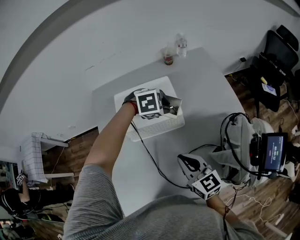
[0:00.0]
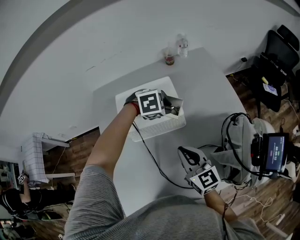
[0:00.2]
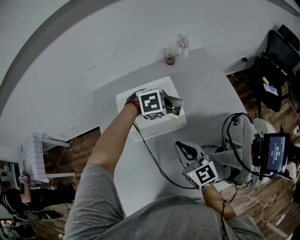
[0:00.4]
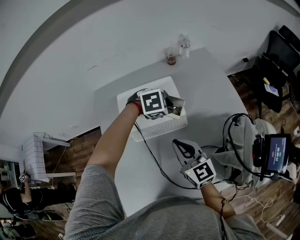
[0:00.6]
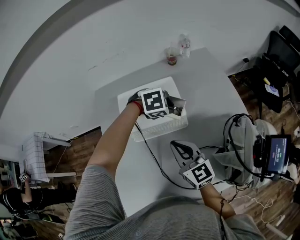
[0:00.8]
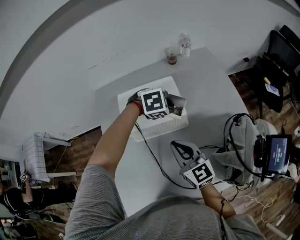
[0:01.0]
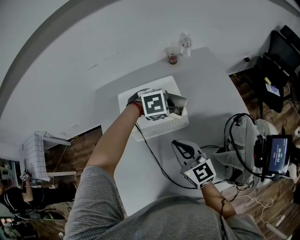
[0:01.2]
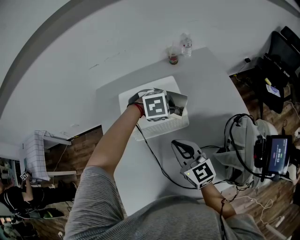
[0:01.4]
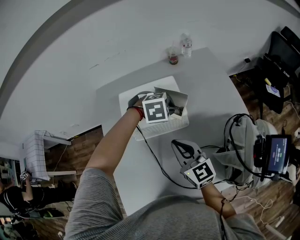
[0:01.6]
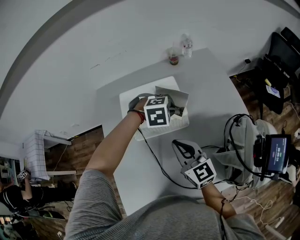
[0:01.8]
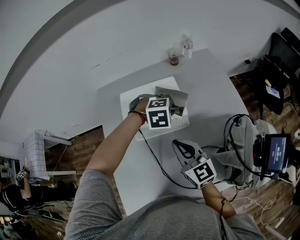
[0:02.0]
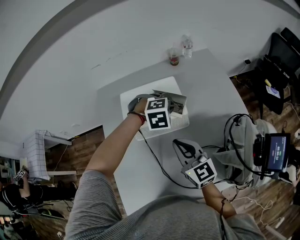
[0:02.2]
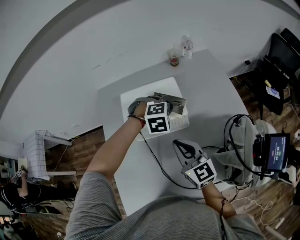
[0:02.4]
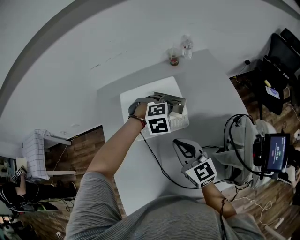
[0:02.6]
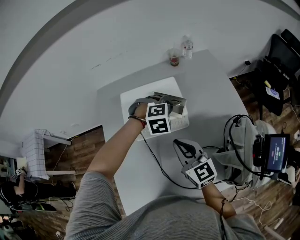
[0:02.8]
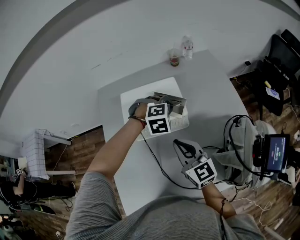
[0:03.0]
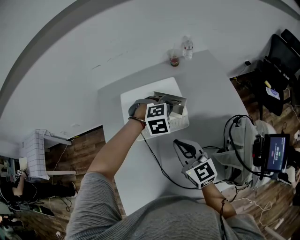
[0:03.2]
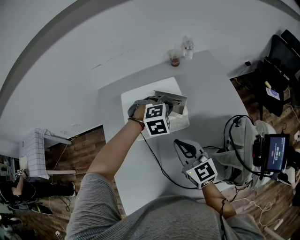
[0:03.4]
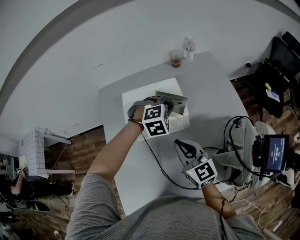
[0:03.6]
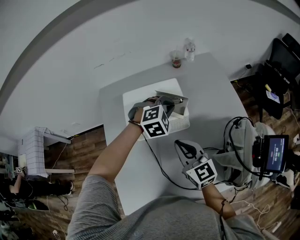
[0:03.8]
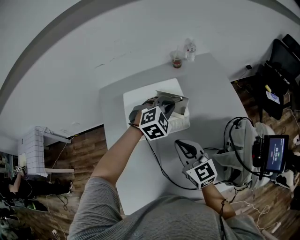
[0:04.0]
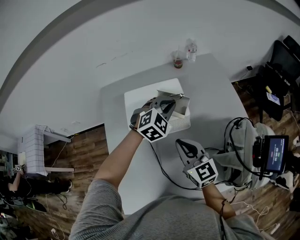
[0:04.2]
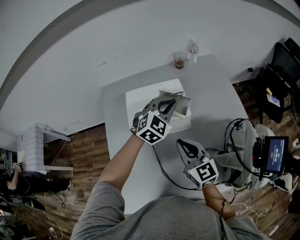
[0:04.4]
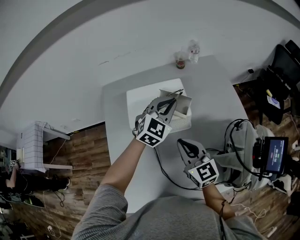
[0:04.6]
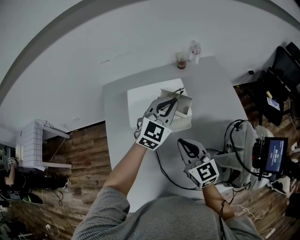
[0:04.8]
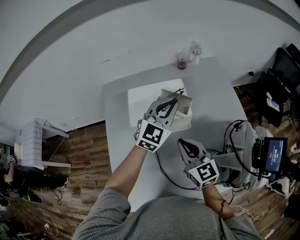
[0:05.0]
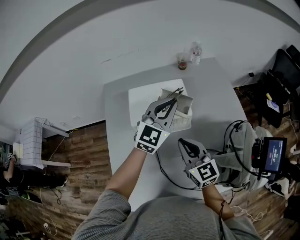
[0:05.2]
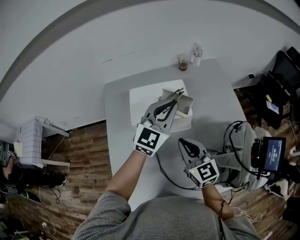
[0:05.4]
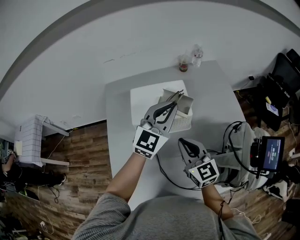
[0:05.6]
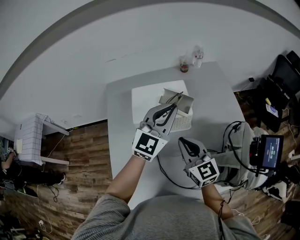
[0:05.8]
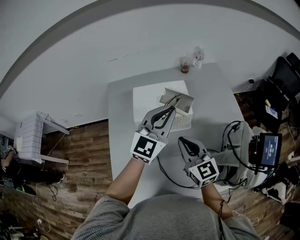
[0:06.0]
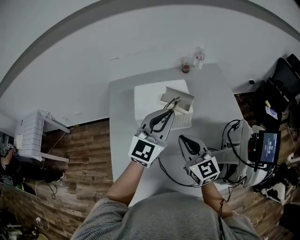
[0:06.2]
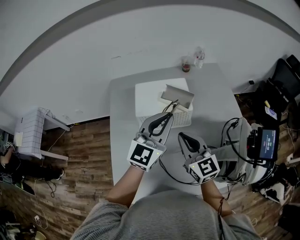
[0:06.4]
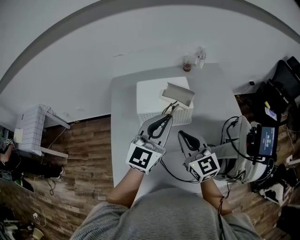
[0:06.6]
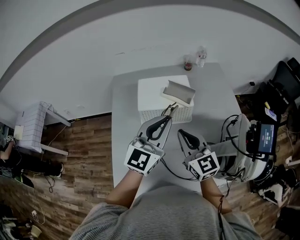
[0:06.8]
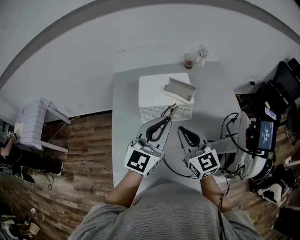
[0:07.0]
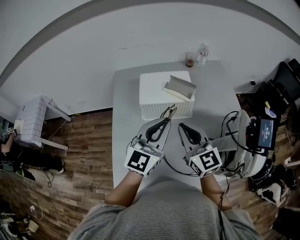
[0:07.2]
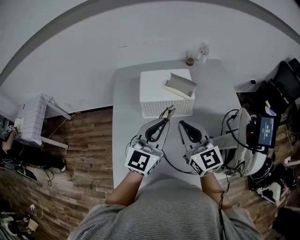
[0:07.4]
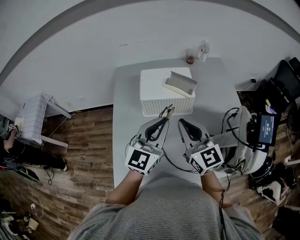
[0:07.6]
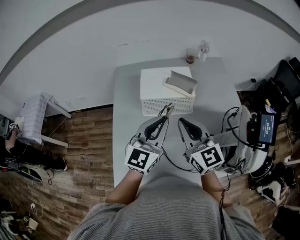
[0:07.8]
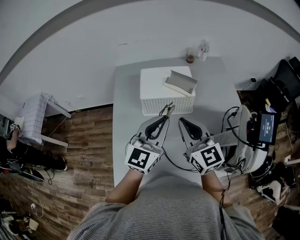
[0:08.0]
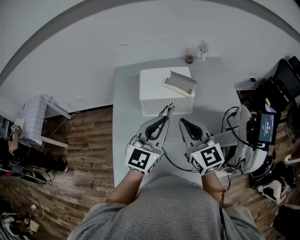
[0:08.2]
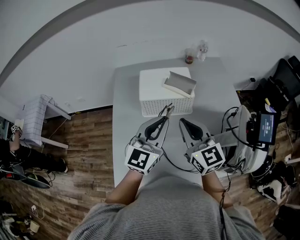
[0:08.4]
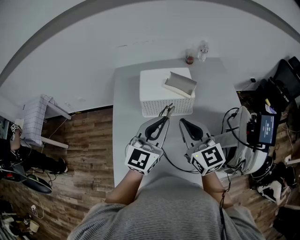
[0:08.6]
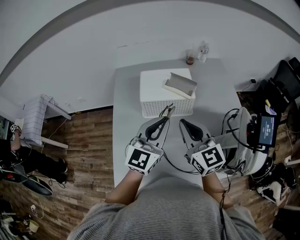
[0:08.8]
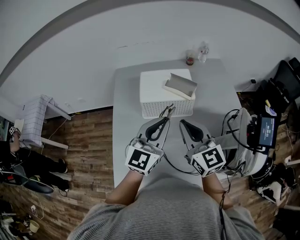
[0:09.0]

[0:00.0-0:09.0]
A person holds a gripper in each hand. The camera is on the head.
0:00.0 to 0:01.6: The right gripper goes some 5 cm to the left.
0:01.6 to 0:03.0: The grippers make only small movements.
0:03.0 to 0:04.4: The left gripper moves upward, roughly 5 cm, and tips its fingers upward by some 30 degrees.
0:04.4 to 0:06.0: The left gripper goes roughly 15 cm upward and backward, and changes its angle by about 30 degrees.
0:06.0 to 0:07.6: The right gripper is displaced upward and backward by roughly 10 cm. Meanwhile the left gripper shifts some 15 cm backward.
0:07.6 to 0:09.0: Both grippers stay about where they are.

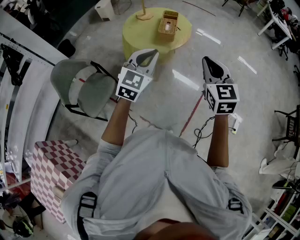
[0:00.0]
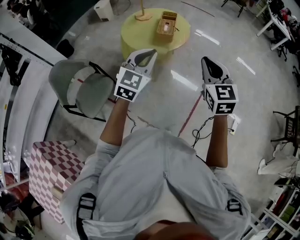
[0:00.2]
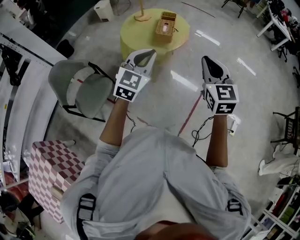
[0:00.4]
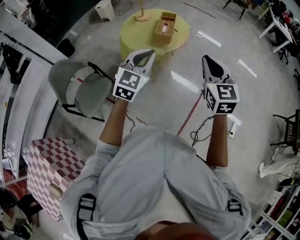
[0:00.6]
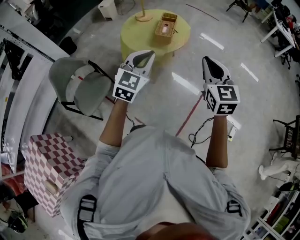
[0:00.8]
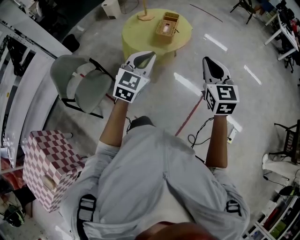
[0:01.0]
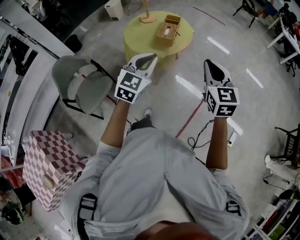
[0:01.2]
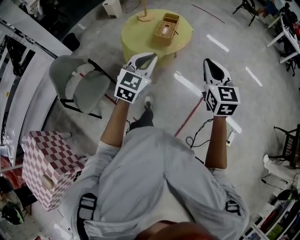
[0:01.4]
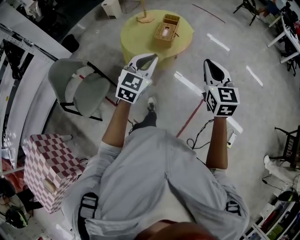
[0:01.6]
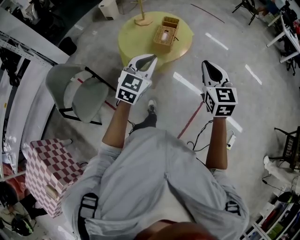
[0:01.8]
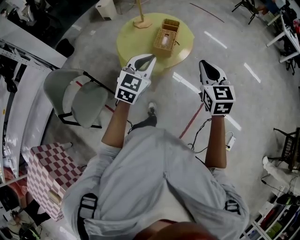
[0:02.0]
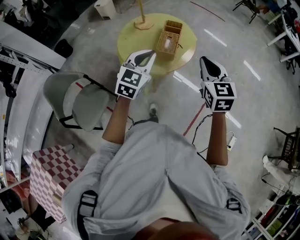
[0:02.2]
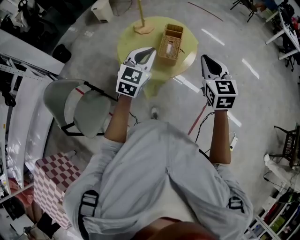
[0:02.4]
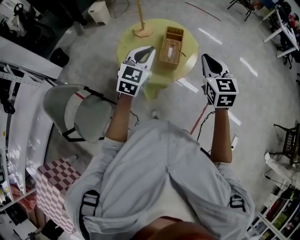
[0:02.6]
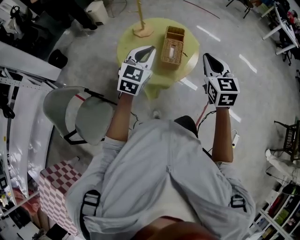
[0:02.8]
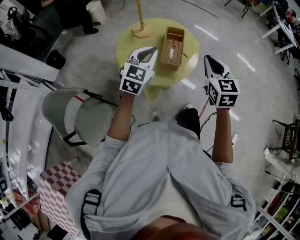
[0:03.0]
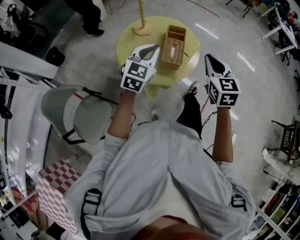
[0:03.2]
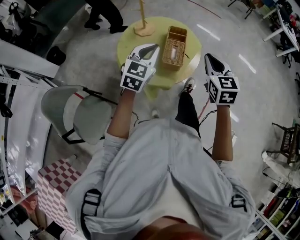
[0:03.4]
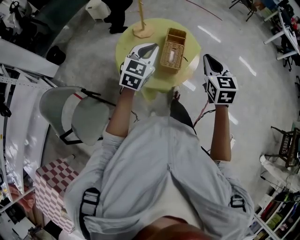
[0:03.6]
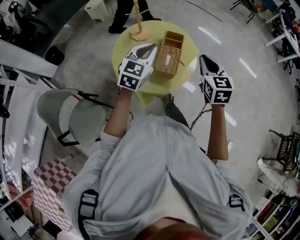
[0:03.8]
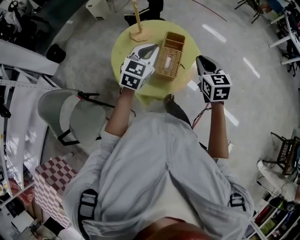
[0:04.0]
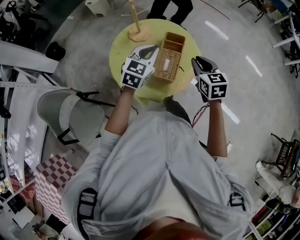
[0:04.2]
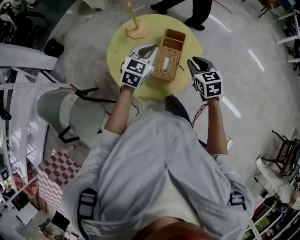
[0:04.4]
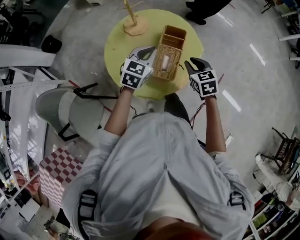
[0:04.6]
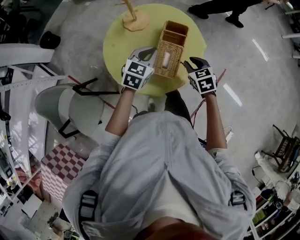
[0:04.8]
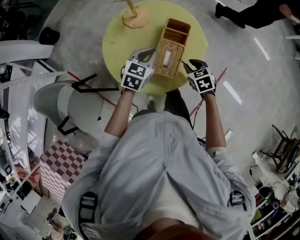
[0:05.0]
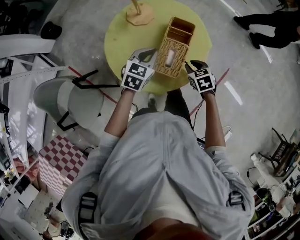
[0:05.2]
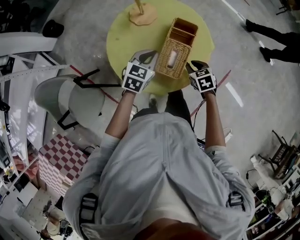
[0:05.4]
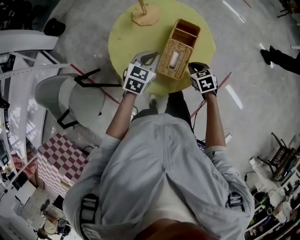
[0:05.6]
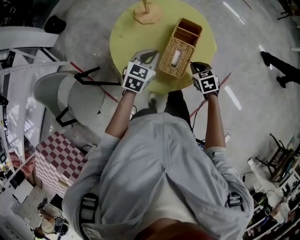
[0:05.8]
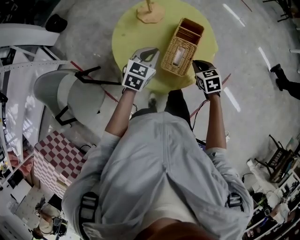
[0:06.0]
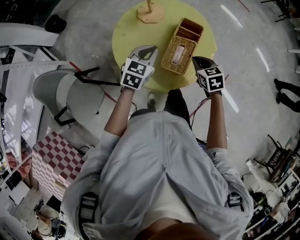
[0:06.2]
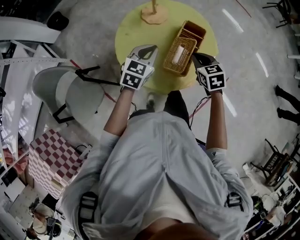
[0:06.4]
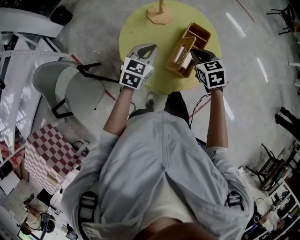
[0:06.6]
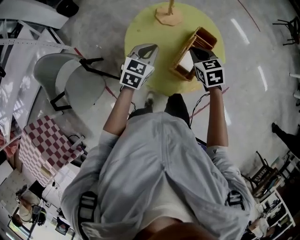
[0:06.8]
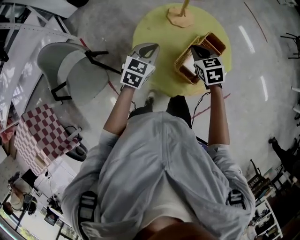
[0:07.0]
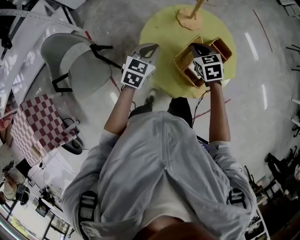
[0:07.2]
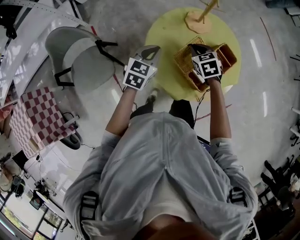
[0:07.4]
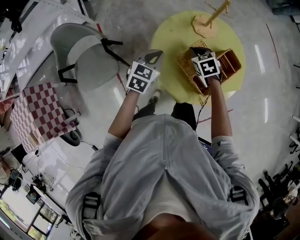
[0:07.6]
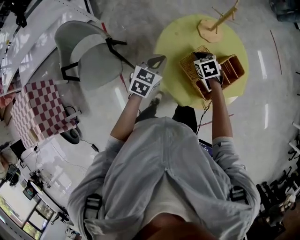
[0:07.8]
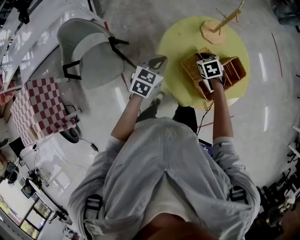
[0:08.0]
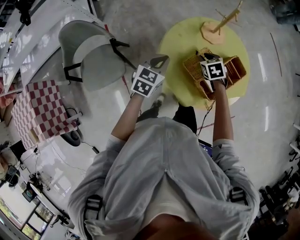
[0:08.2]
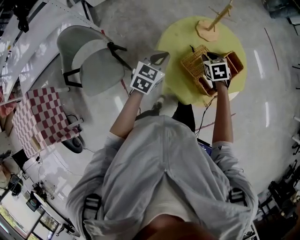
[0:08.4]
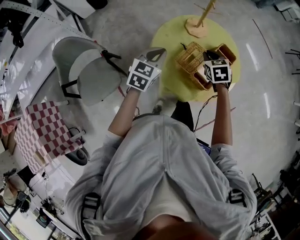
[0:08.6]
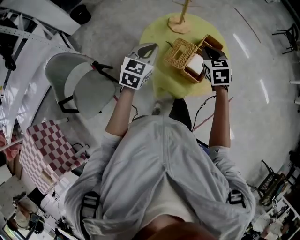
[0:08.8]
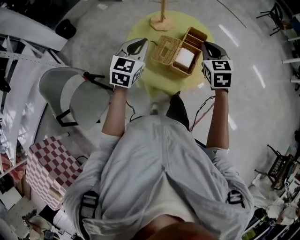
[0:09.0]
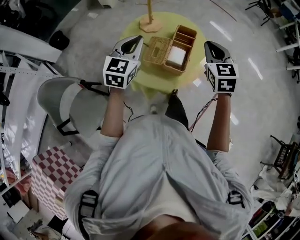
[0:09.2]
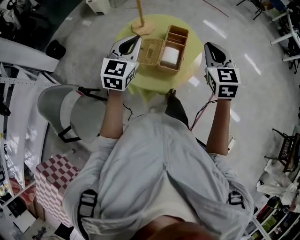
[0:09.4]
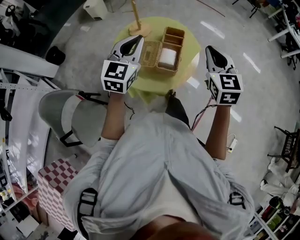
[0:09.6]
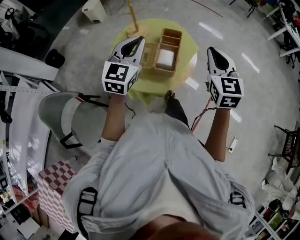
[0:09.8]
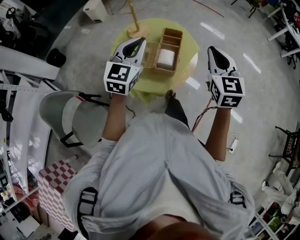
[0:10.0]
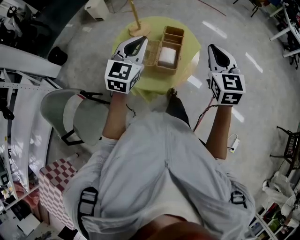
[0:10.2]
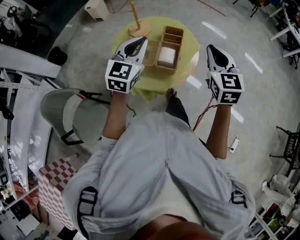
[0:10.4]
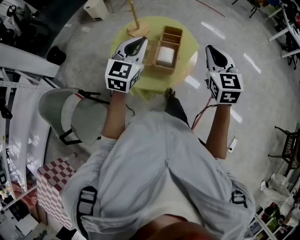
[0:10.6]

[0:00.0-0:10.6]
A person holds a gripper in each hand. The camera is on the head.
0:00.0 to 0:01.6: Both grippers travel together forward and to the right, approximately 10 cm.
0:01.6 to 0:03.0: Both grippers travel together forward and to the left, approximately 30 cm.
0:03.0 to 0:04.6: The left gripper is displaced forward and downward by some 25 cm. The right gripper moves downward and forward, approximately 30 cm, and turns by about 30 degrees.
0:04.6 to 0:06.0: The right gripper shifts about 10 cm downward; the left gripper is displaced downward by about 5 cm.
0:06.0 to 0:07.6: The left gripper is displaced to the left by approximately 20 cm, and turns by some 30 degrees, while the right gripper goes approximately 25 cm to the left and forward, and rotates approximately 30 degrees.
0:07.6 to 0:09.0: The right gripper goes some 20 cm upward, and turns by about 40 degrees. The left gripper is displaced upward by about 10 cm, and swivels about 30 degrees.
0:09.0 to 0:10.6: The right gripper goes some 20 cm to the right, upward and backward; the left gripper shifts about 15 cm to the right and upward.

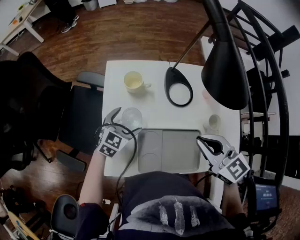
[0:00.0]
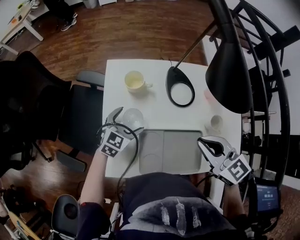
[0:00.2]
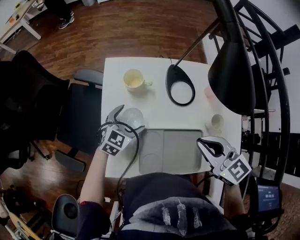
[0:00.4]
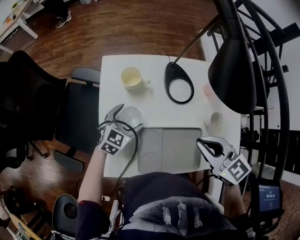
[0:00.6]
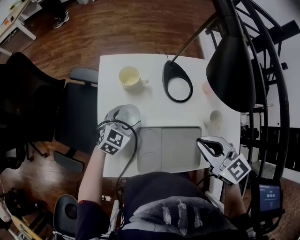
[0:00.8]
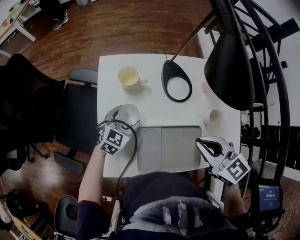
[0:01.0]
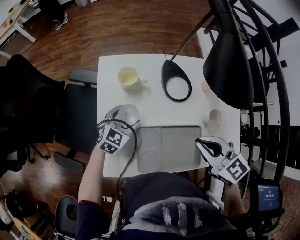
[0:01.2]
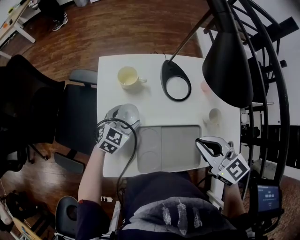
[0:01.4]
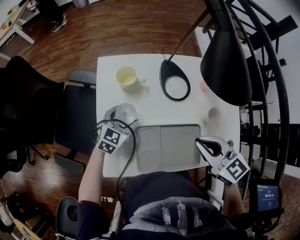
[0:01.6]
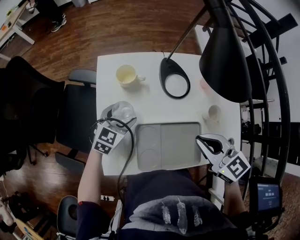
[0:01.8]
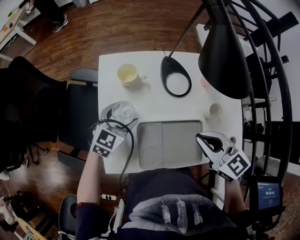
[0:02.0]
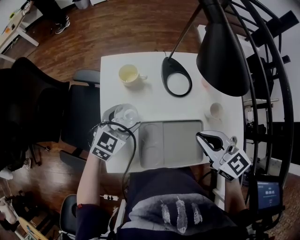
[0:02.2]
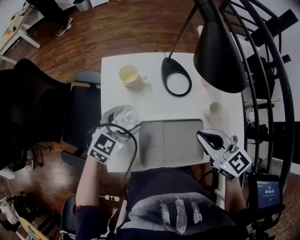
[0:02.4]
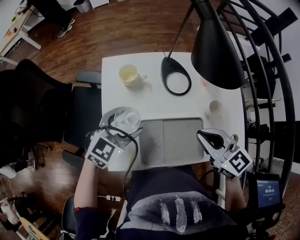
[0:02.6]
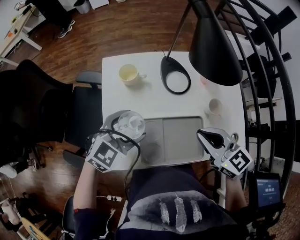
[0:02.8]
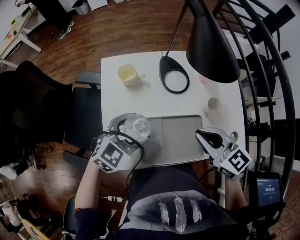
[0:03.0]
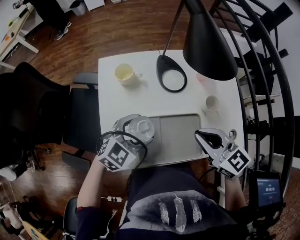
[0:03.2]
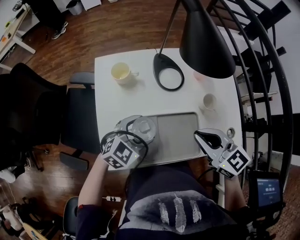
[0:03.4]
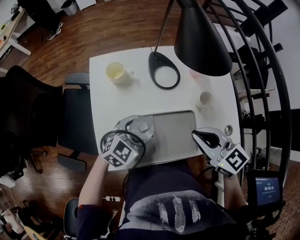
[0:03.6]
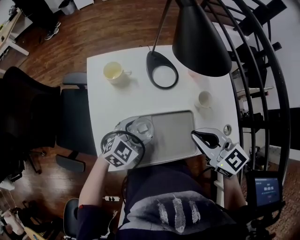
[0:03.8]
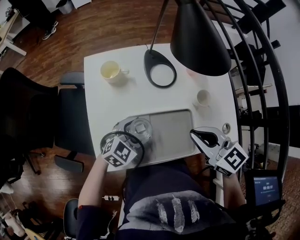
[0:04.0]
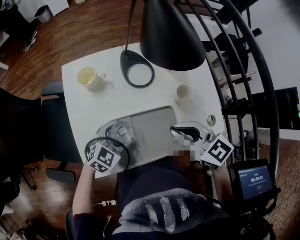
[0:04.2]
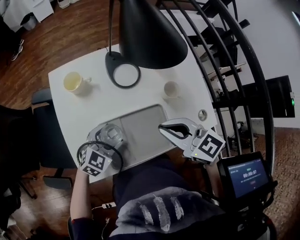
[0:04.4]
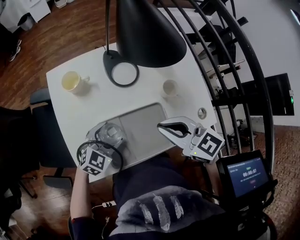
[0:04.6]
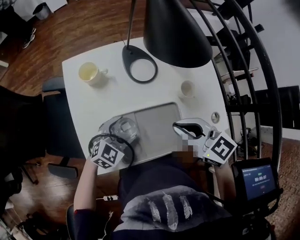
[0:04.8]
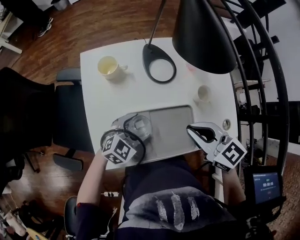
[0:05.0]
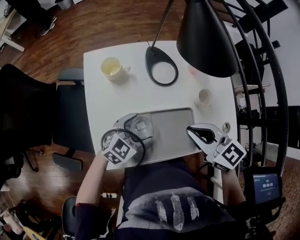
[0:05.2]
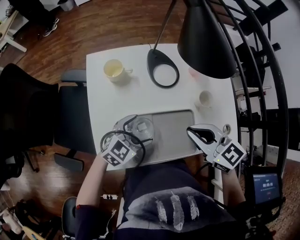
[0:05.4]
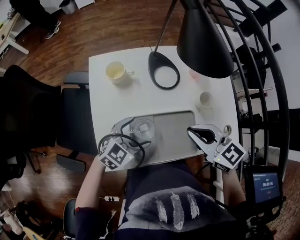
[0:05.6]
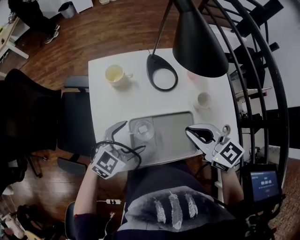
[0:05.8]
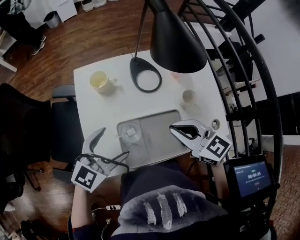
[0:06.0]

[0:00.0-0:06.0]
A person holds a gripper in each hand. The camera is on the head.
0:00.0 to 0:01.6: The grippers make only small movements.
0:01.6 to 0:03.0: The left gripper travels upward and backward by approximately 15 cm.
0:03.0 to 0:04.4: The left gripper is displaced downward and to the right by some 10 cm.
0:04.4 to 0:06.0: The left gripper is displaced upward and to the left by approximately 15 cm, and rotates some 20 degrees.
